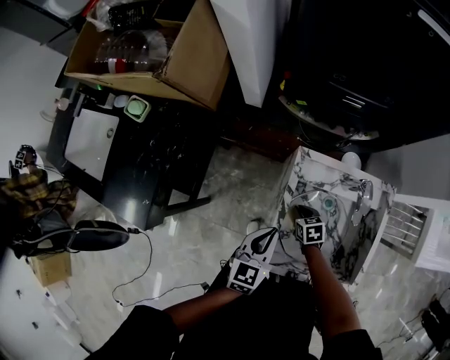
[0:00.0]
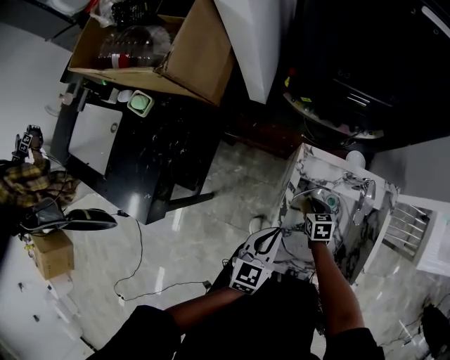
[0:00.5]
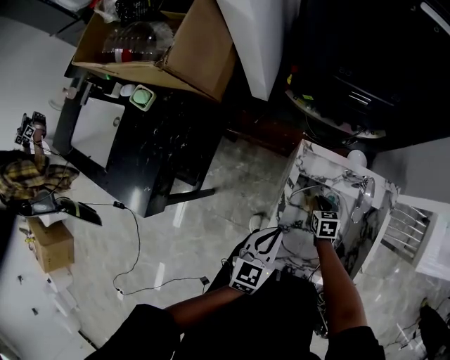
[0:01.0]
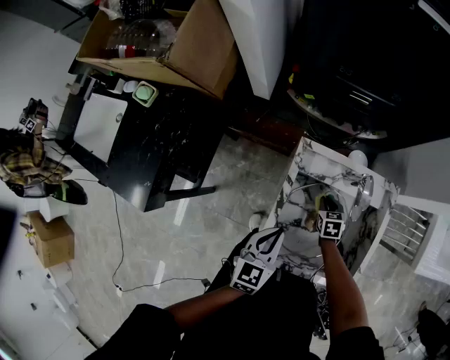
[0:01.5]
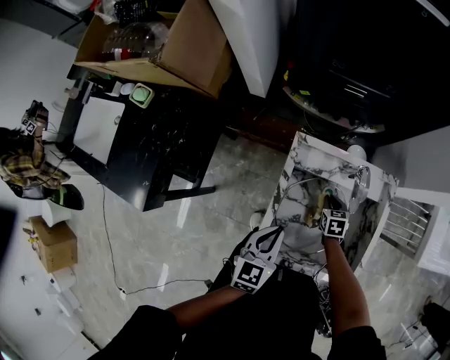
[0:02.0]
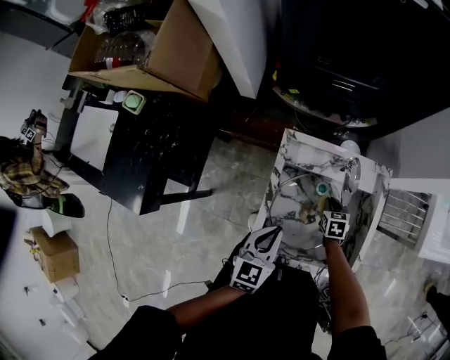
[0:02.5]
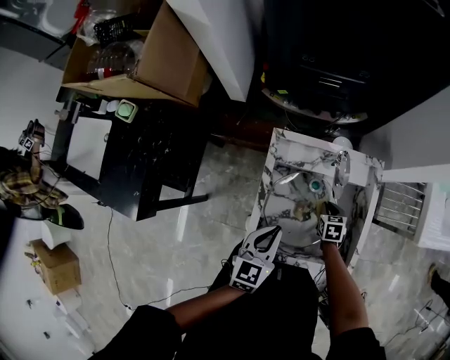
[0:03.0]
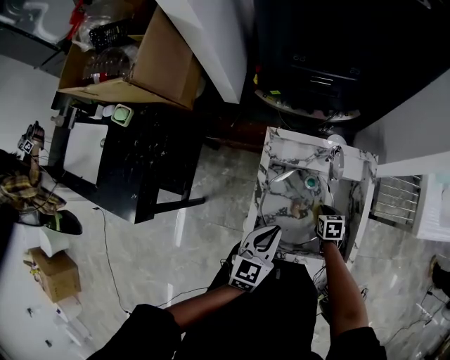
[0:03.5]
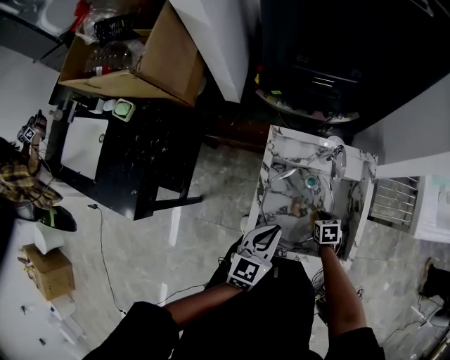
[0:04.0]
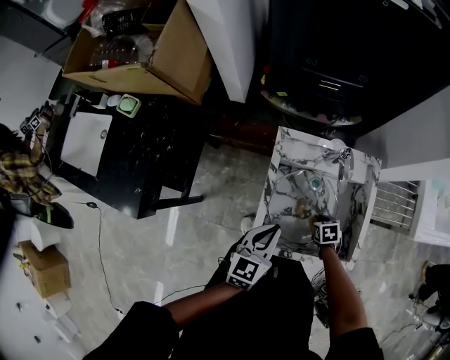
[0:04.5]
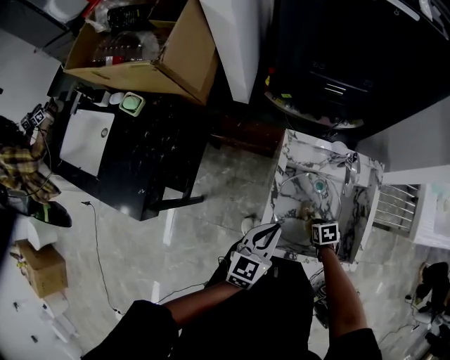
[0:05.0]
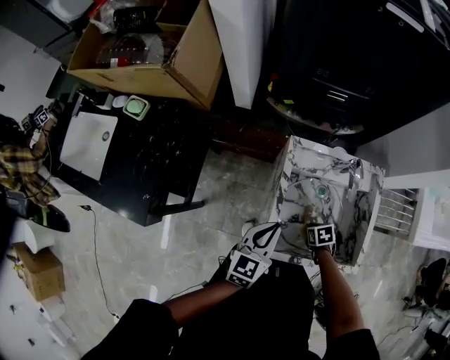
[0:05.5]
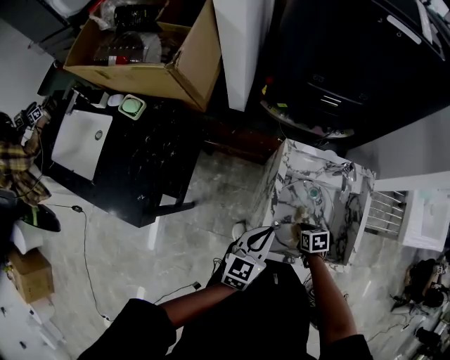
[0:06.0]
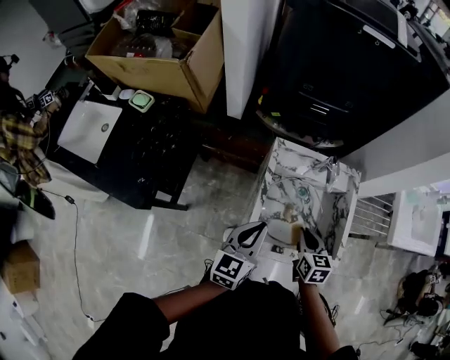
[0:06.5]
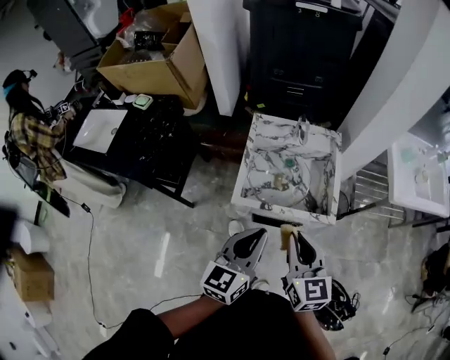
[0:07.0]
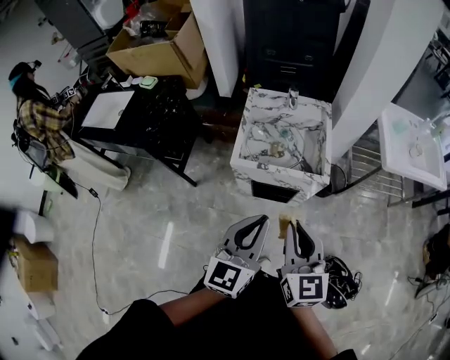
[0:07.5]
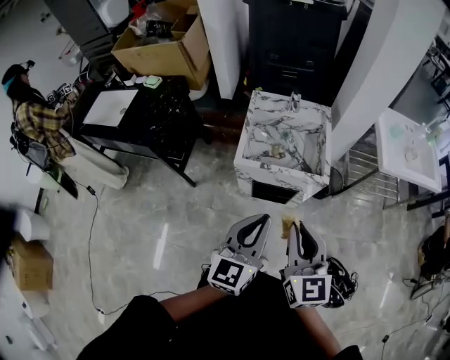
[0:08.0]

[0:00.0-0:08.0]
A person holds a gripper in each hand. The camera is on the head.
0:00.0 to 0:02.0: The left gripper ends up approximately 5 cm from where it was. Meanwhile the right gripper moves to the right, approximately 15 cm.
0:02.0 to 0:04.0: The right gripper moves backward and to the right, roughly 10 cm; the left gripper moves some 5 cm.
0:04.0 to 0:06.0: Both grippers move to the left, approximately 10 cm.
0:06.0 to 0:08.0: The two grippers travel together, backward, some 40 cm. The left gripper heads upward, covering approximately 20 cm, and rotates approximately 20 degrees, while the right gripper travels upward by about 40 cm, and tilts its fingers about 60 degrees upward.

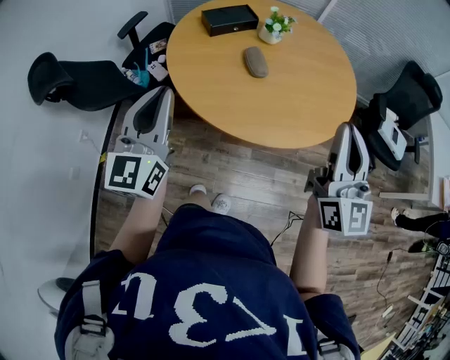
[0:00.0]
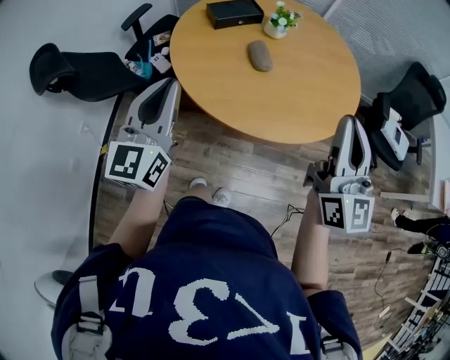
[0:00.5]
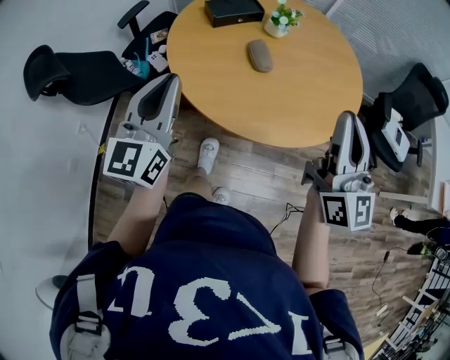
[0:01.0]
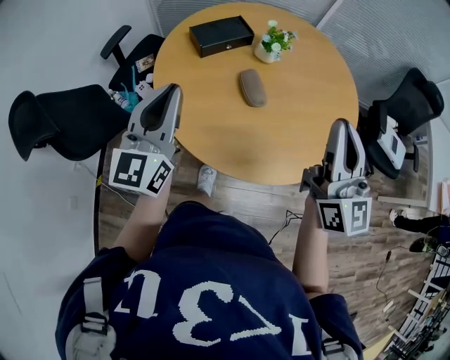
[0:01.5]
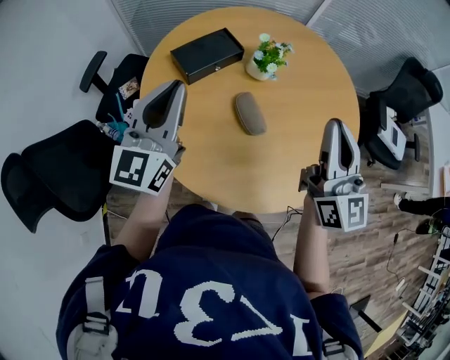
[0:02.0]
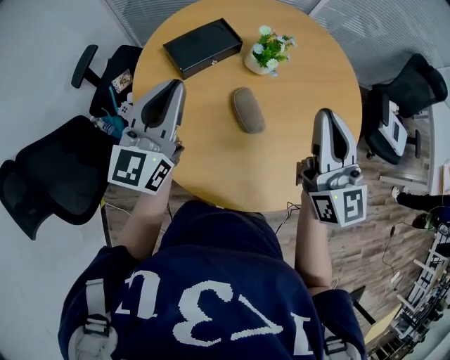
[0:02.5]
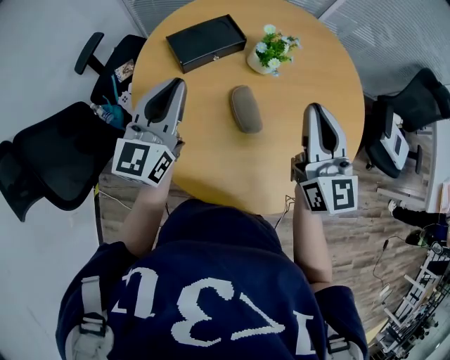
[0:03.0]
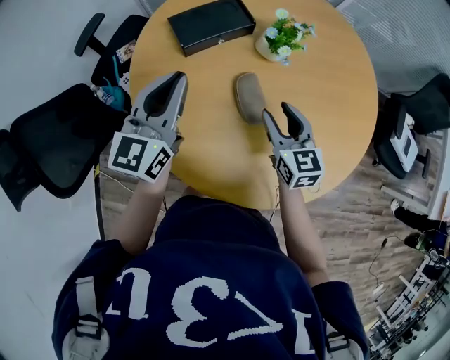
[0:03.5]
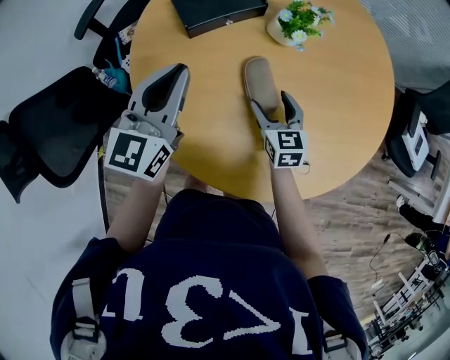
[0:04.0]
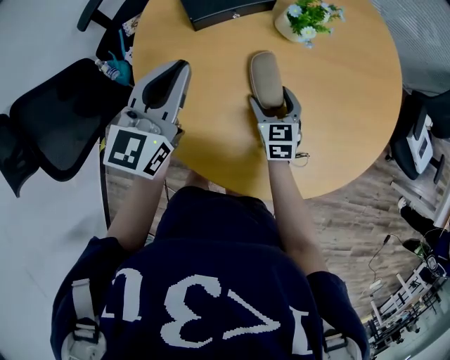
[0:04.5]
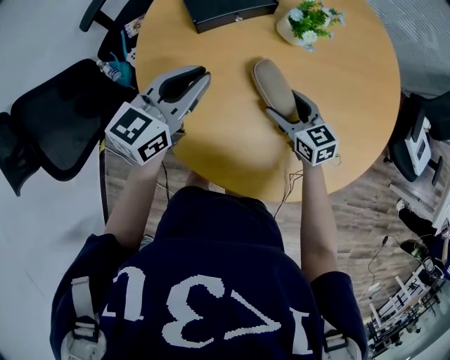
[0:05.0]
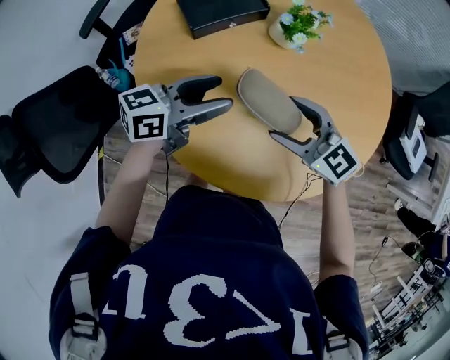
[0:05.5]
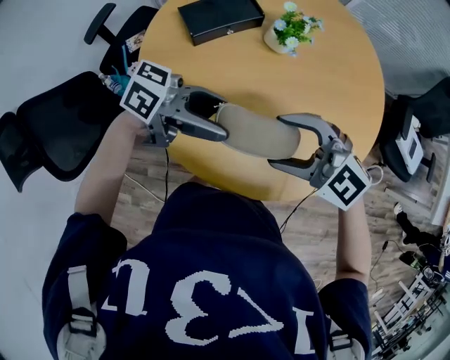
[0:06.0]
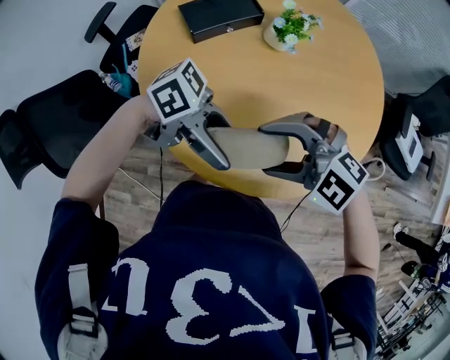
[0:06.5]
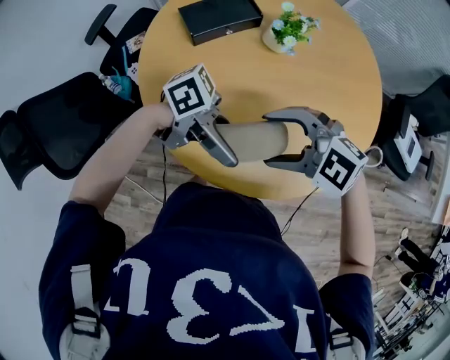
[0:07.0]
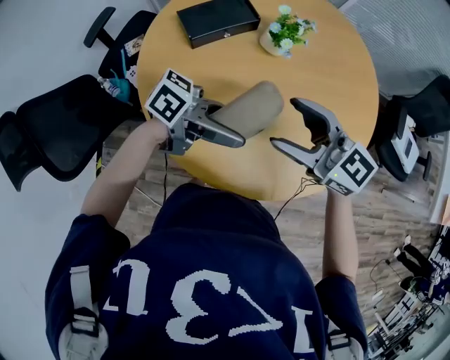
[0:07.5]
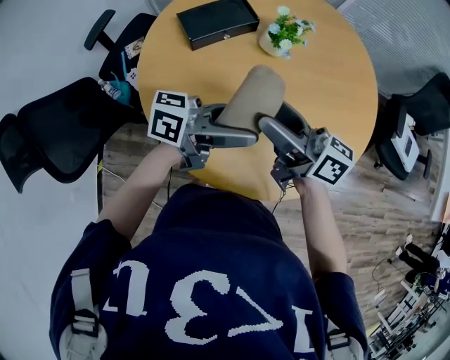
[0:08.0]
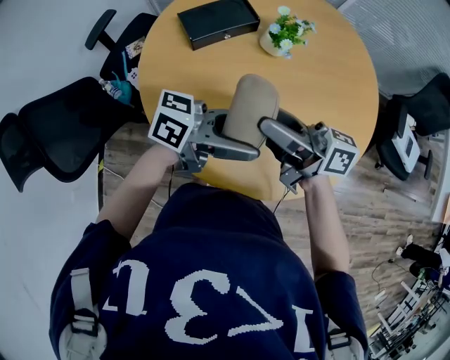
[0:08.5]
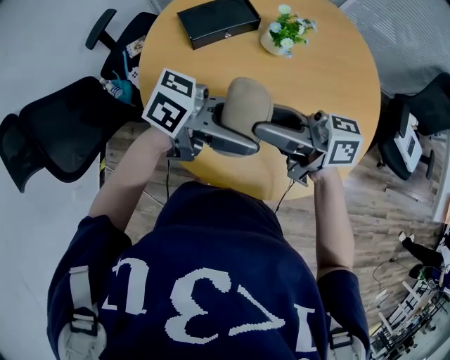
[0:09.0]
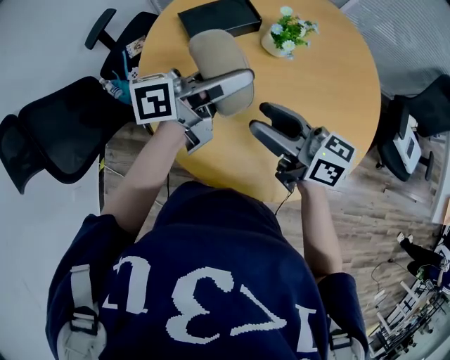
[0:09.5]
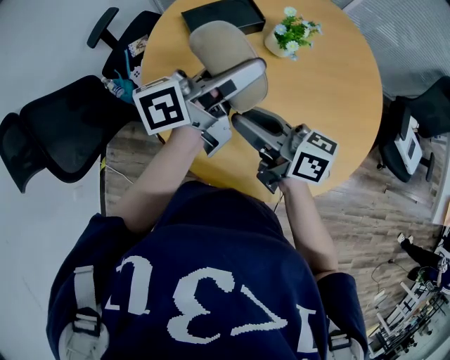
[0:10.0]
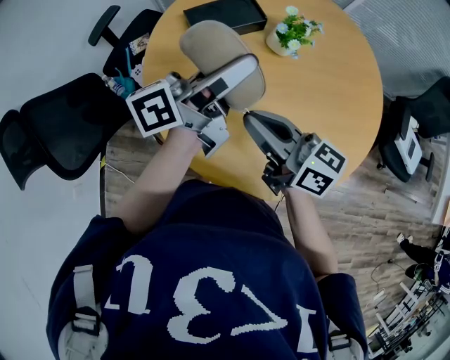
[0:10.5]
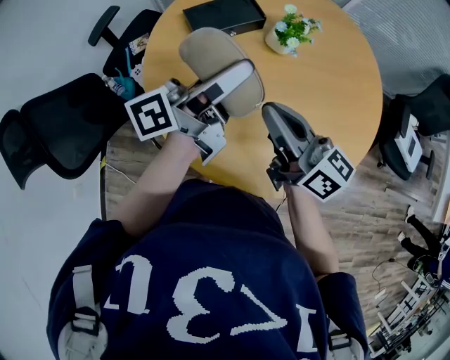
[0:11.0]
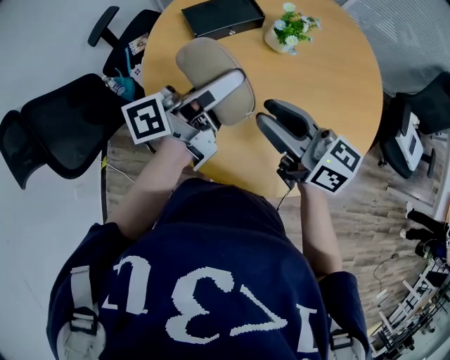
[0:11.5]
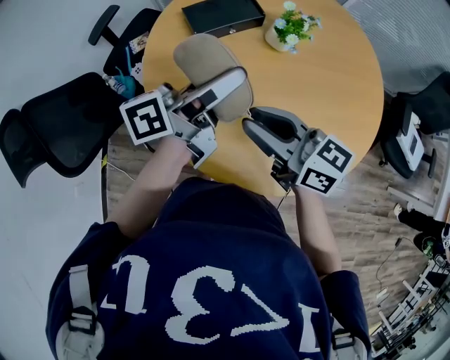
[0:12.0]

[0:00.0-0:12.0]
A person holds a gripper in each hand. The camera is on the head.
0:00.0 to 0:02.0: The grippers both shift forward by approximately 30 cm.
0:02.0 to 0:04.0: The left gripper moves downward, some 10 cm; the right gripper heads downward, covering roughly 35 cm, tilts its fingers about 40 degrees downward, and opens its fingers.
0:04.0 to 0:06.0: The right gripper goes about 20 cm upward, and turns by approximately 60 degrees; the left gripper changes place by some 15 cm, rotates approximately 80 degrees, and opens up.
0:06.0 to 0:08.0: The right gripper moves some 10 cm, and rolls clockwise, seen from behind, by approximately 60 degrees.
0:08.0 to 0:10.0: The left gripper moves approximately 15 cm, and swivels about 40 degrees. The right gripper shifts by approximately 5 cm, and closes.

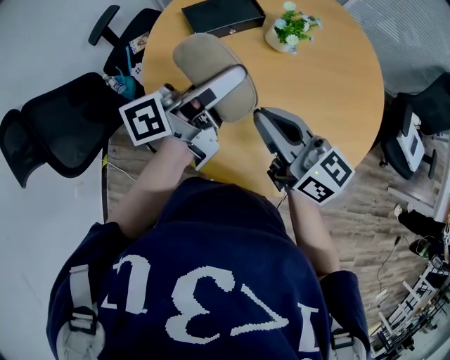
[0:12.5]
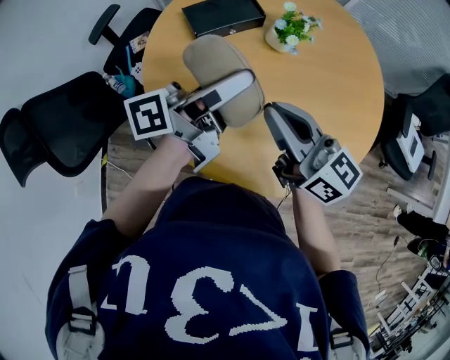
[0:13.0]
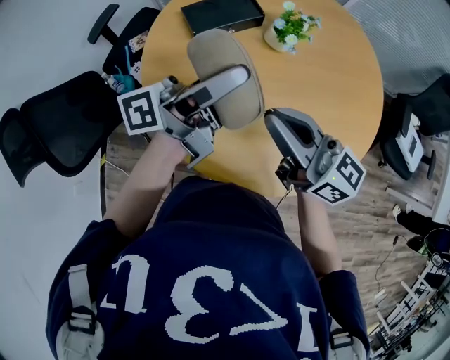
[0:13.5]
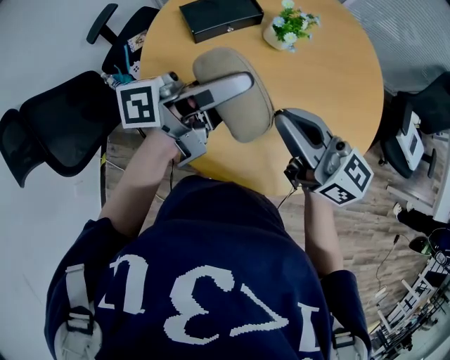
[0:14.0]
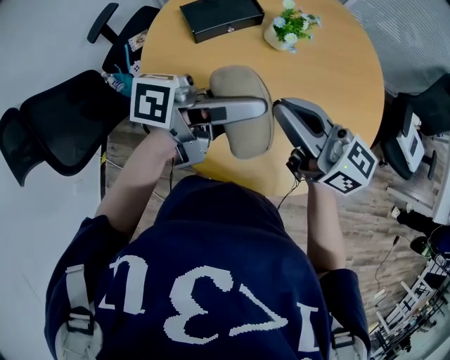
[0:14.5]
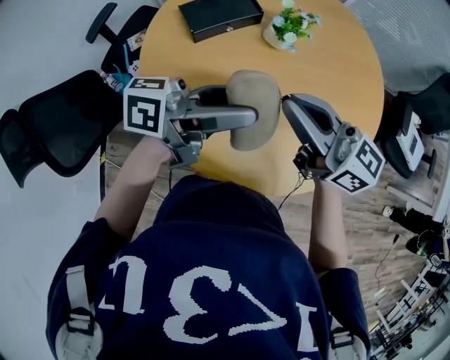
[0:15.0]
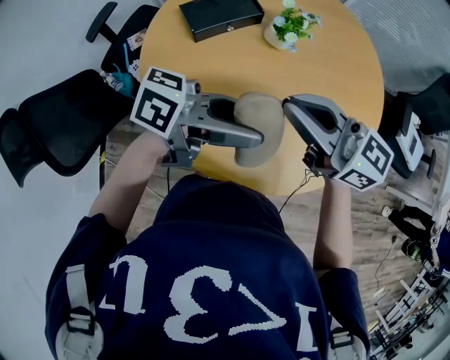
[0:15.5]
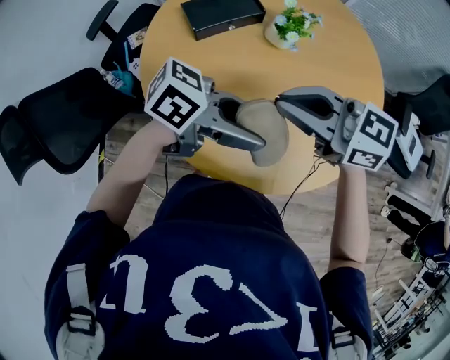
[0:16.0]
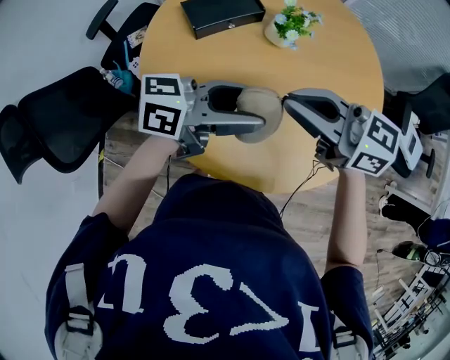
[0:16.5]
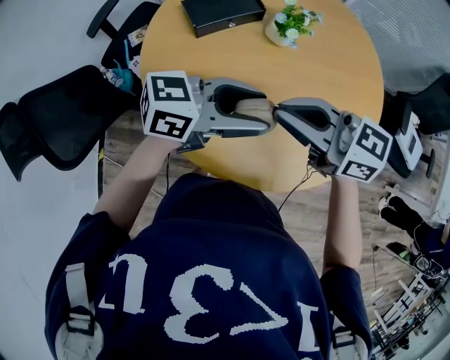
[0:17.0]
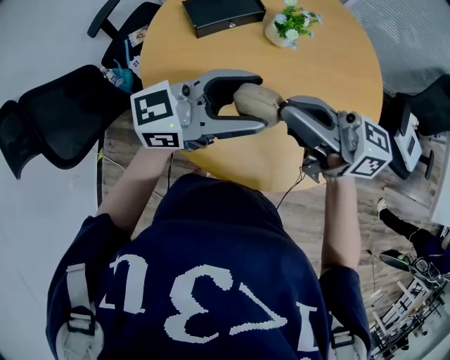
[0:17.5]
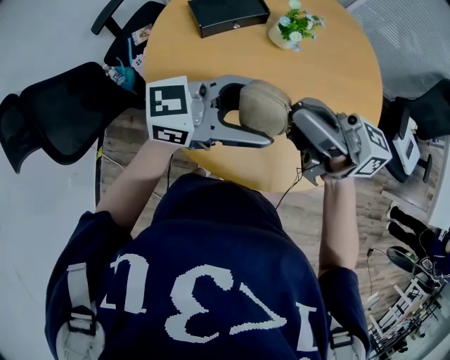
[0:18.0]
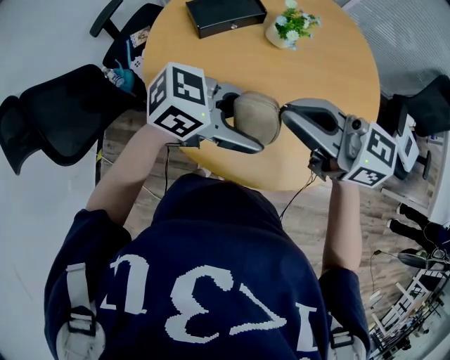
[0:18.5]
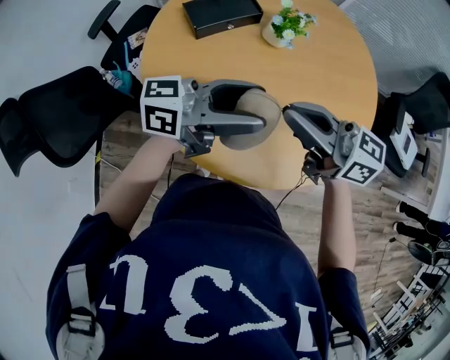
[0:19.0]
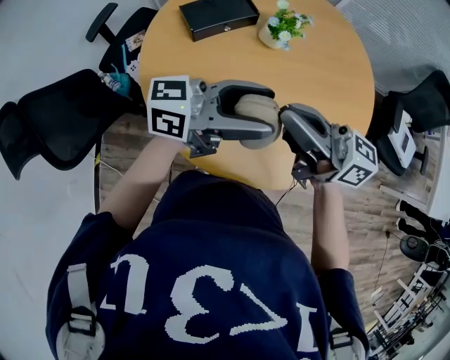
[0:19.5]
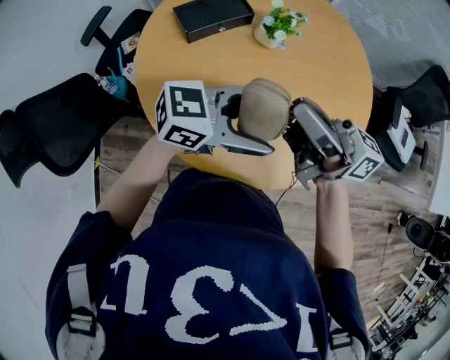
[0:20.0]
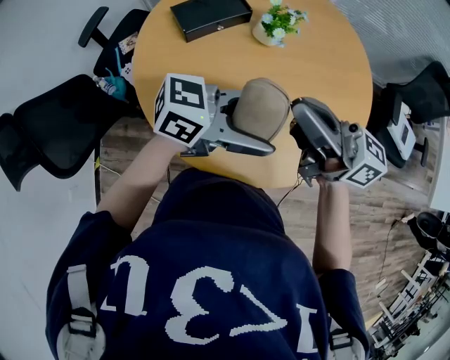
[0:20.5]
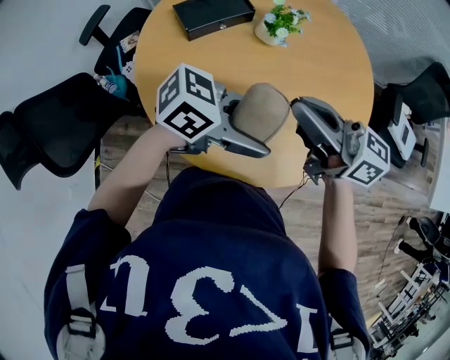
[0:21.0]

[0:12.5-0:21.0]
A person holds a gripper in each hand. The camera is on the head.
0:12.5 to 0:14.5: The right gripper ends up approximately 5 cm from where it was, while the left gripper shifts by some 10 cm, and swivels some 30 degrees.
0:14.5 to 0:16.5: The left gripper changes its angle by roughly 20 degrees. The right gripper turns by approximately 20 degrees.
0:19.0 to 0:21.0: The left gripper moves roughly 5 cm, and turns by some 30 degrees.
